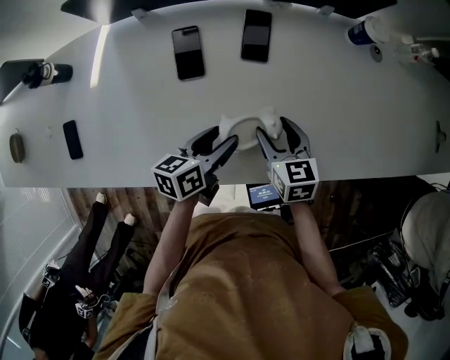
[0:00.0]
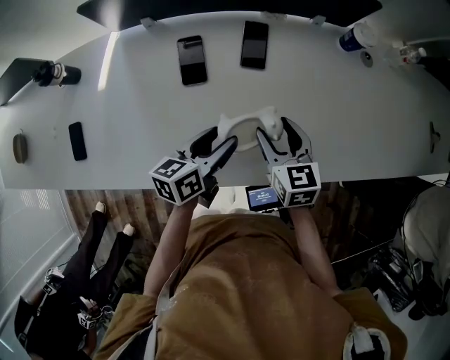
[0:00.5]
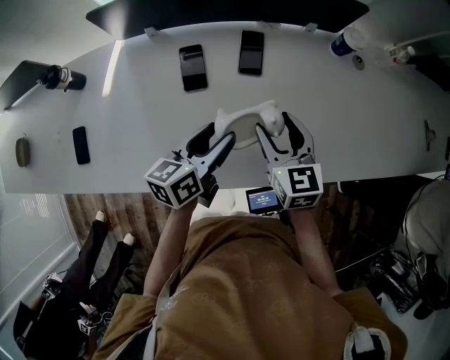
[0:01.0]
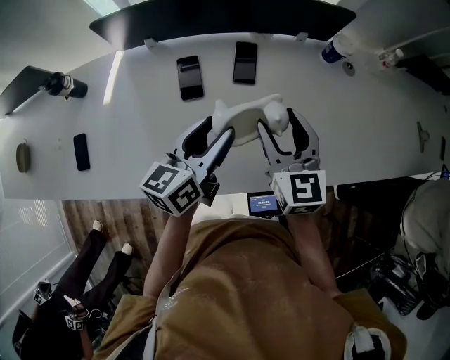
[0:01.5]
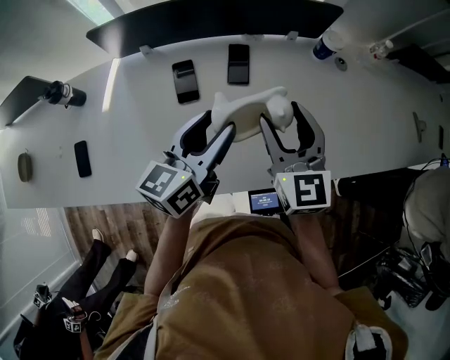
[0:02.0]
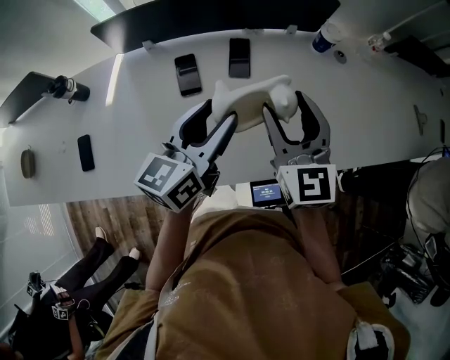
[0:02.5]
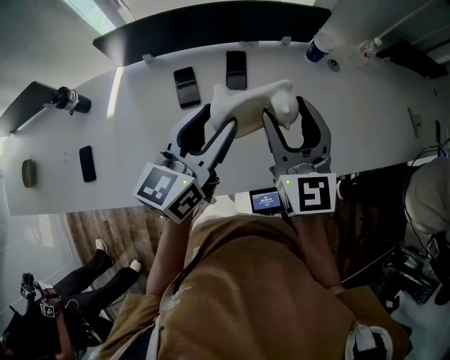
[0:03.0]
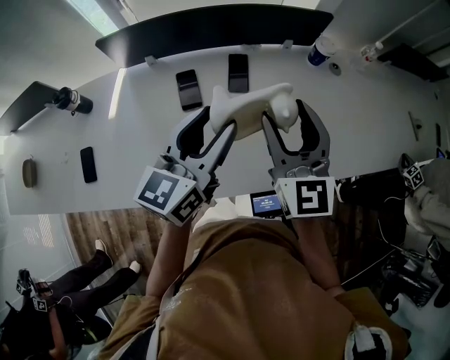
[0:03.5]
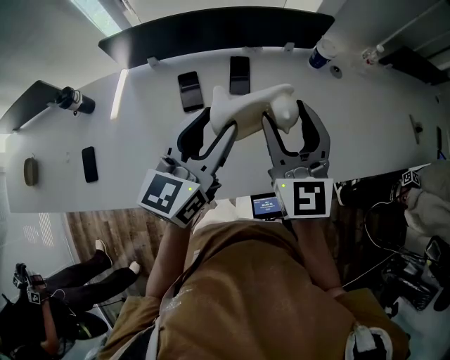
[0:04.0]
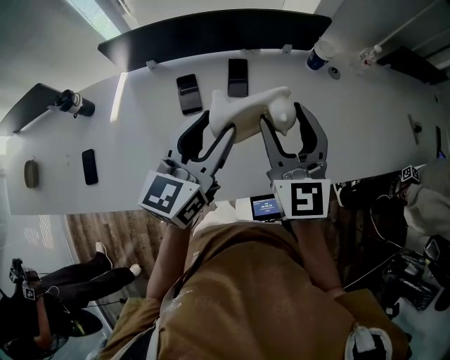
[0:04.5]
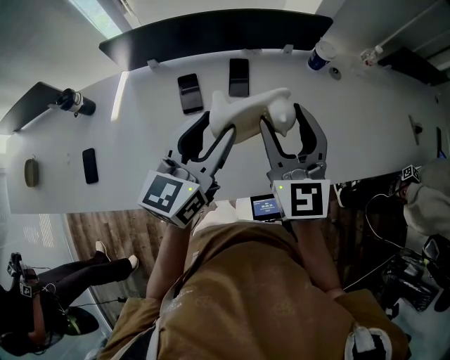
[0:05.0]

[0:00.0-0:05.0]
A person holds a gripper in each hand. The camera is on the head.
0:00.0 to 0:02.5: Both grippers move upward, approximately 25 cm. The left gripper turns by about 40 degrees. The right gripper tips its fingers upward by about 30 degrees.
0:02.5 to 0:05.0: The grippers make only small movements.

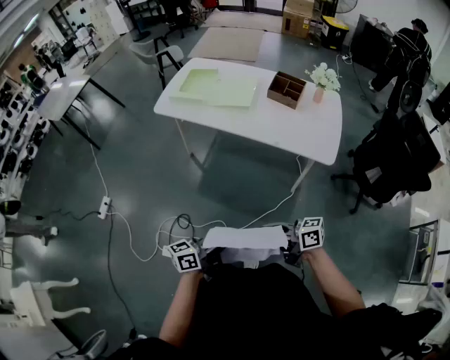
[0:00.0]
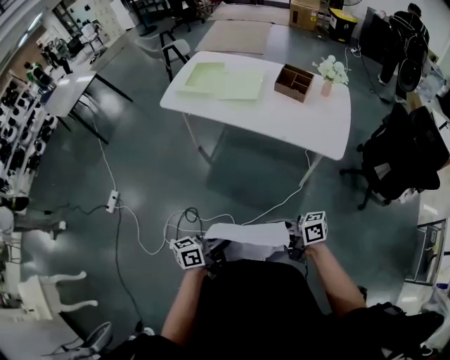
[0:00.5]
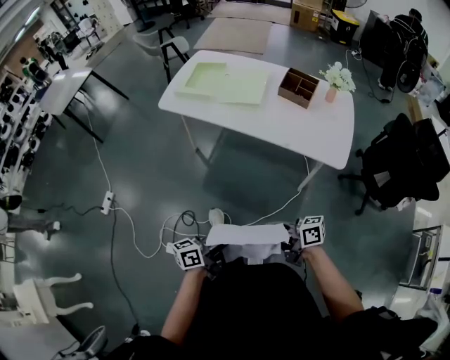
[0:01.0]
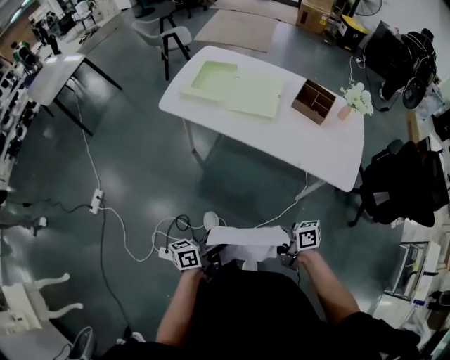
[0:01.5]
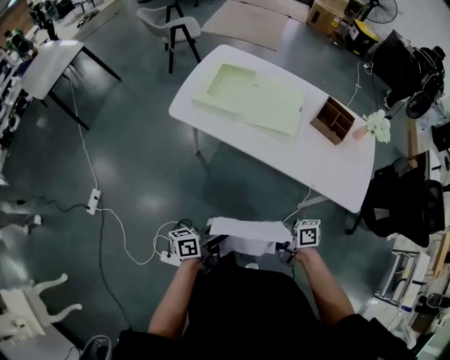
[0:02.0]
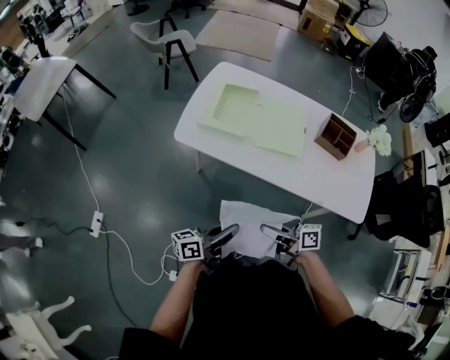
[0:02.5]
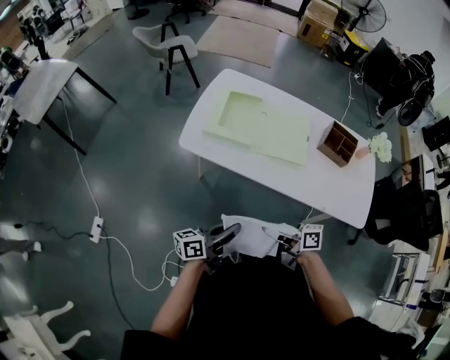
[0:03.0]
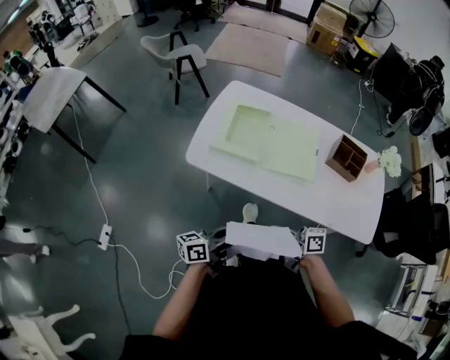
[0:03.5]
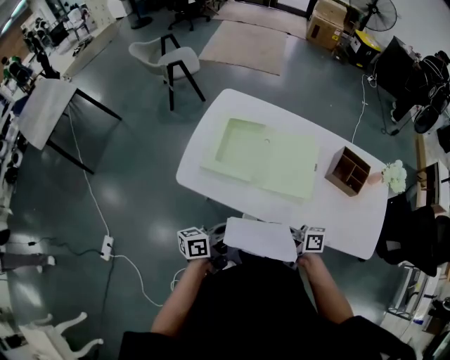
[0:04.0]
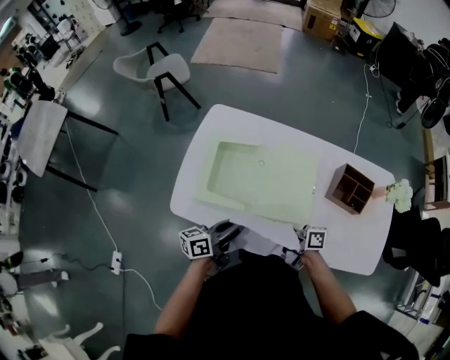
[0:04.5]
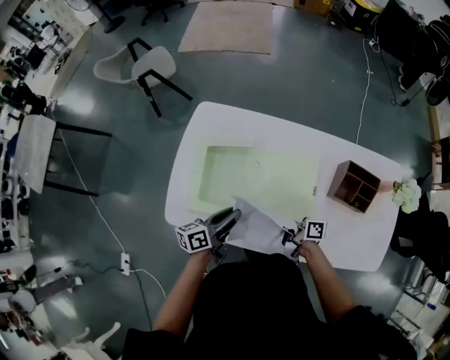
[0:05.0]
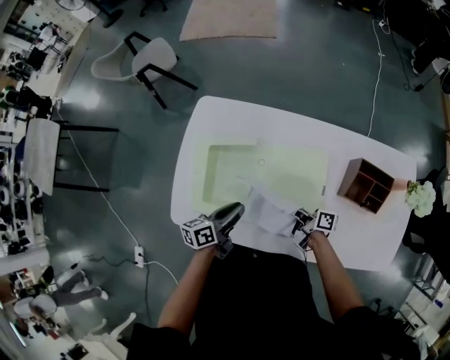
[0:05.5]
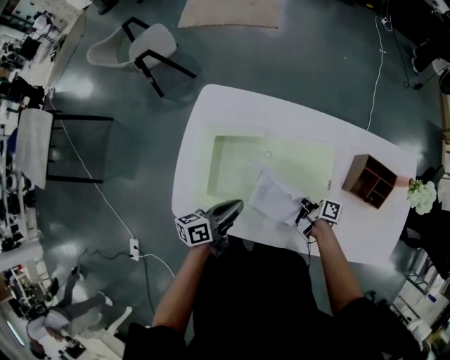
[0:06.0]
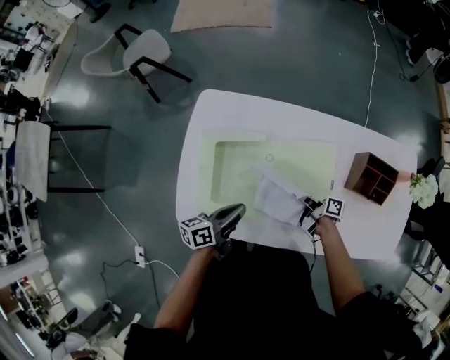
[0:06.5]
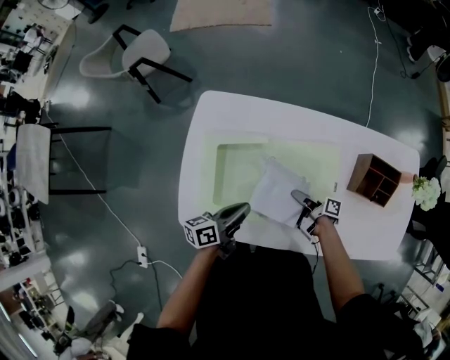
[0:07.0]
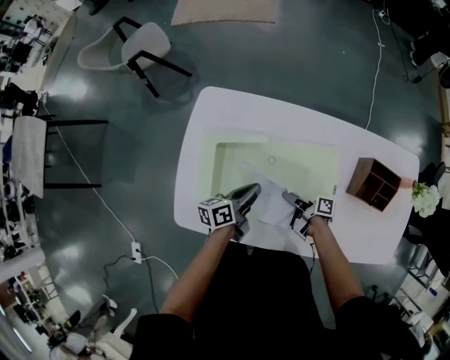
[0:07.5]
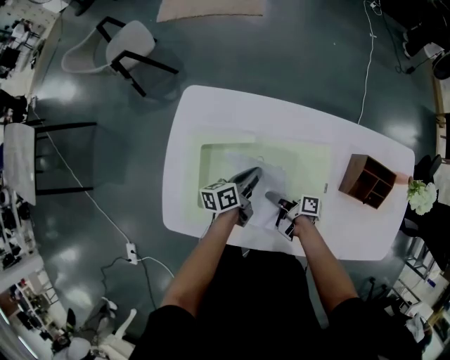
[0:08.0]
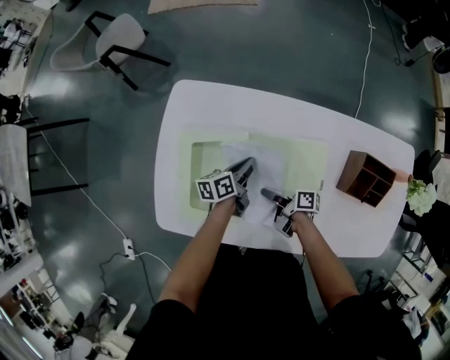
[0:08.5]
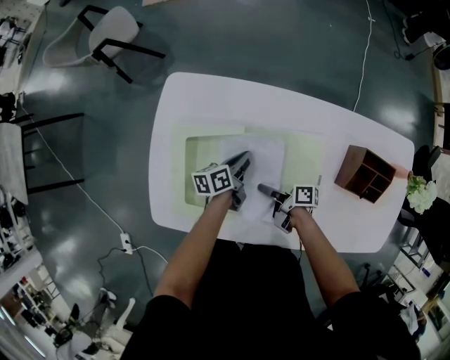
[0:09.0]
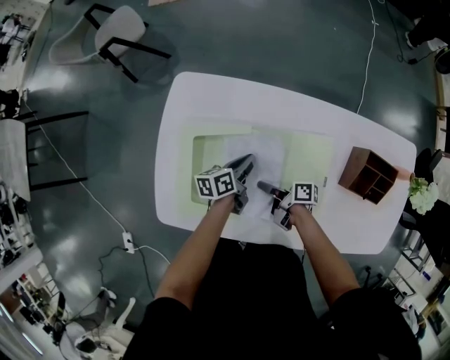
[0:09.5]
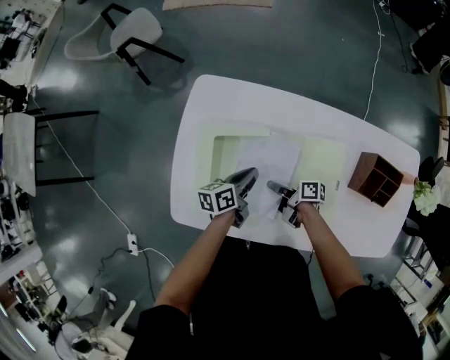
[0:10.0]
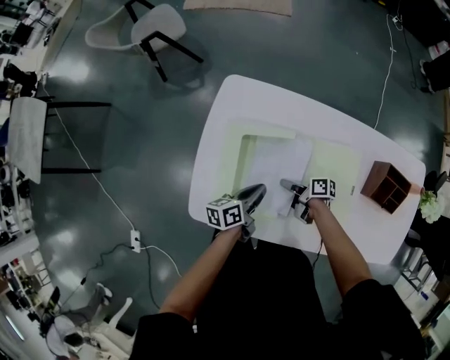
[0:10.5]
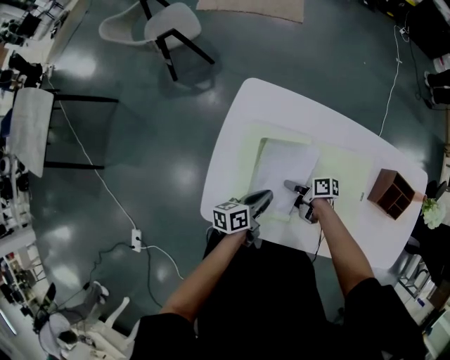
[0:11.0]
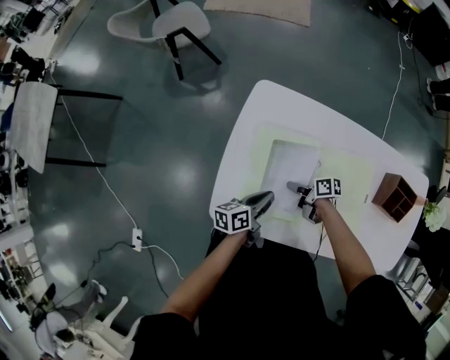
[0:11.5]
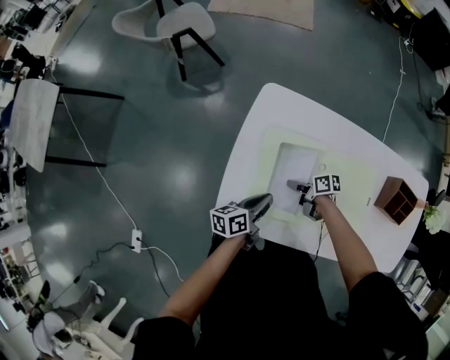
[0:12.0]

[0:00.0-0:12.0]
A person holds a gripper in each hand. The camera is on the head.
0:00.0 to 0:02.0: The left gripper moves approximately 30 cm.
0:02.0 to 0:04.0: The left gripper shifts by approximately 30 cm.
0:04.0 to 0:06.0: The left gripper shifts by approximately 25 cm.
0:06.0 to 0:08.0: The left gripper shifts by some 20 cm.
0:08.0 to 0:10.0: The left gripper shifts by some 5 cm.
0:10.0 to 0:12.0: The left gripper shifts by some 15 cm.

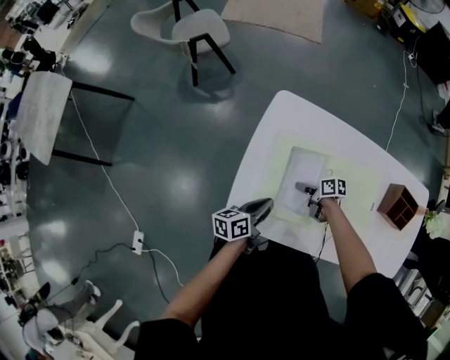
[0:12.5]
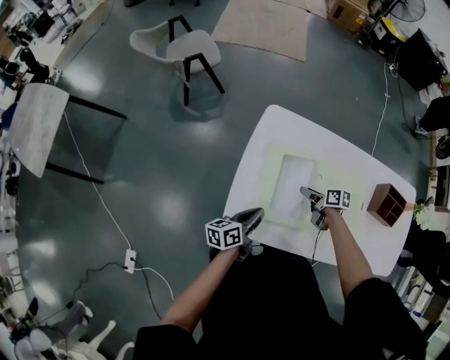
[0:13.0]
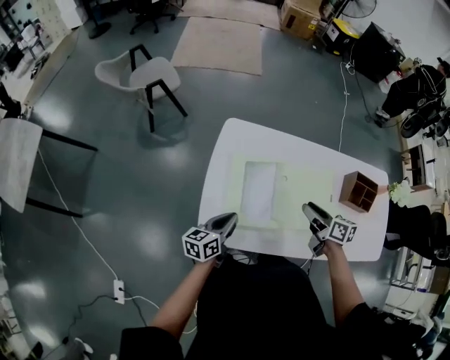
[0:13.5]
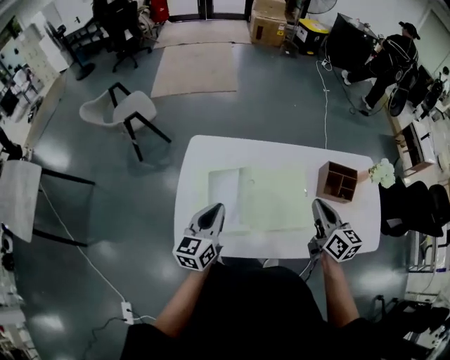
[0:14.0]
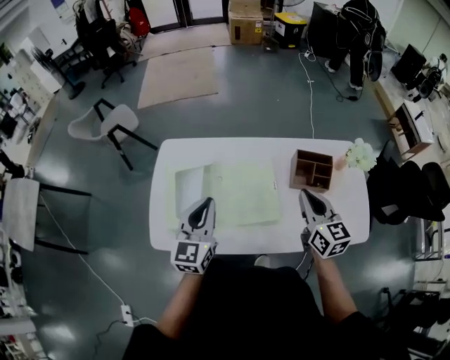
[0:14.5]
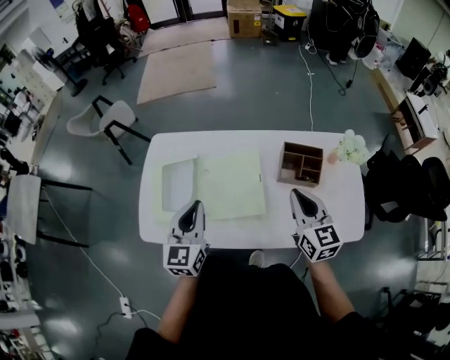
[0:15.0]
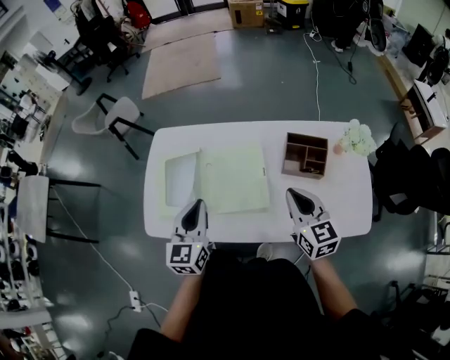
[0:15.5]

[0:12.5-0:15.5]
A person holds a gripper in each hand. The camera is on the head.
0:12.5 to 0:14.0: The left gripper goes approximately 20 cm upward, and rolls clockwise, seen from behind, by roughly 40 degrees.
0:14.0 to 0:15.5: The left gripper moves about 20 cm.

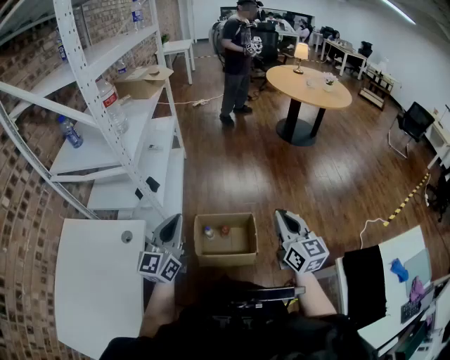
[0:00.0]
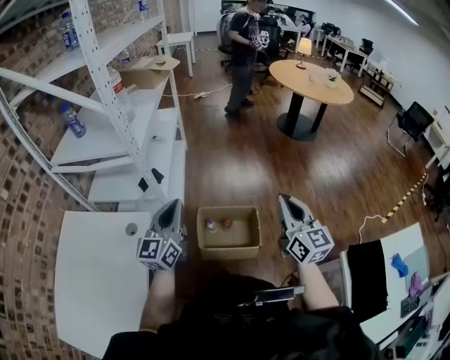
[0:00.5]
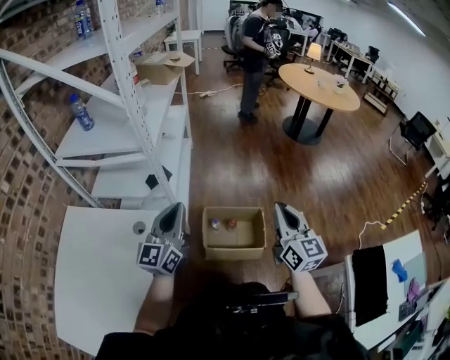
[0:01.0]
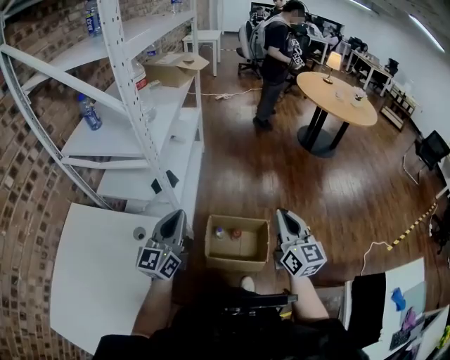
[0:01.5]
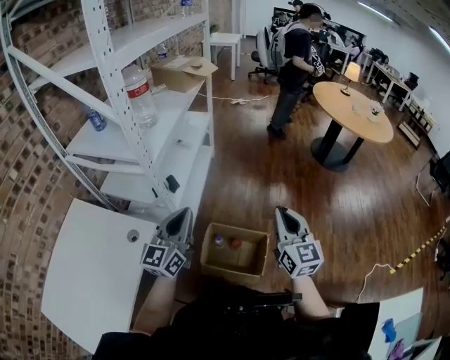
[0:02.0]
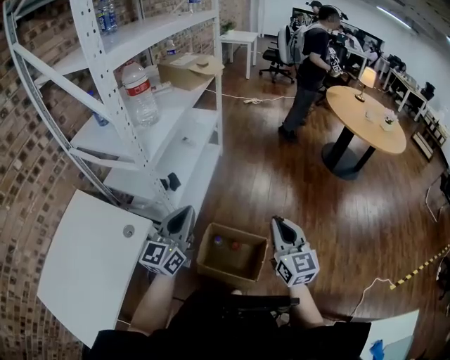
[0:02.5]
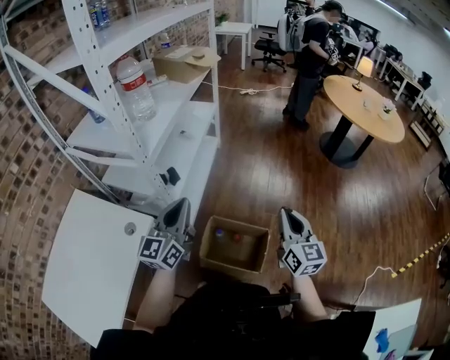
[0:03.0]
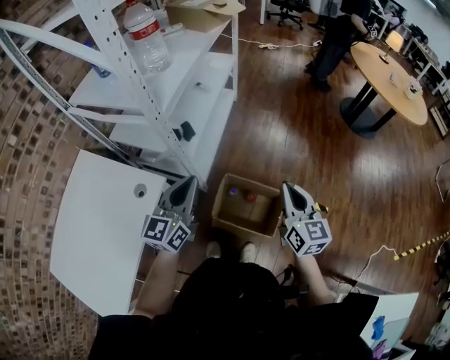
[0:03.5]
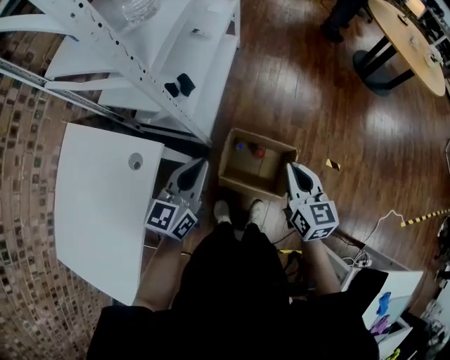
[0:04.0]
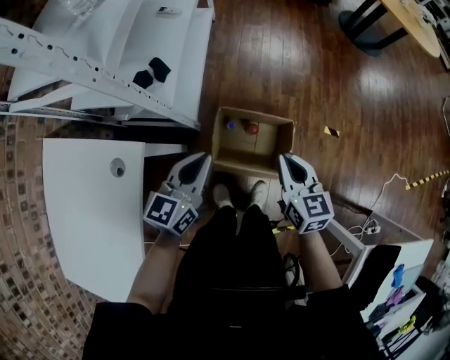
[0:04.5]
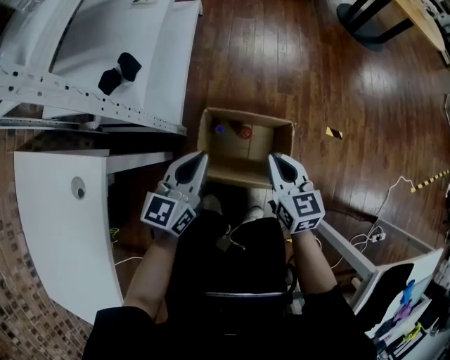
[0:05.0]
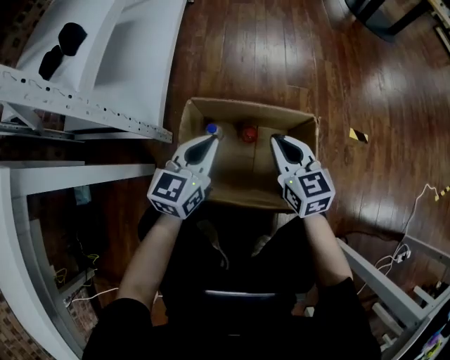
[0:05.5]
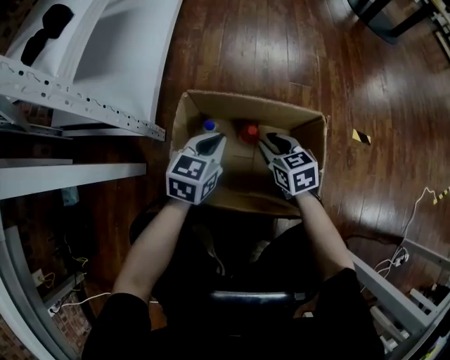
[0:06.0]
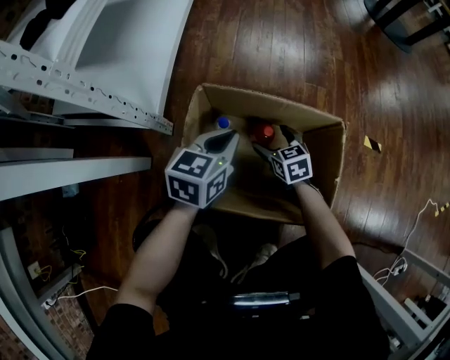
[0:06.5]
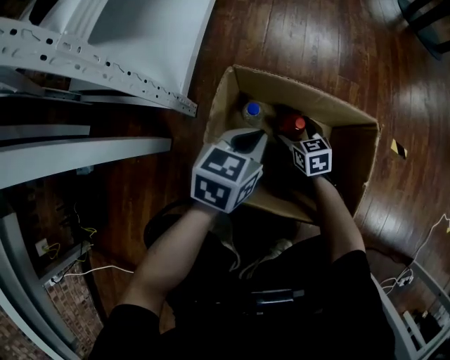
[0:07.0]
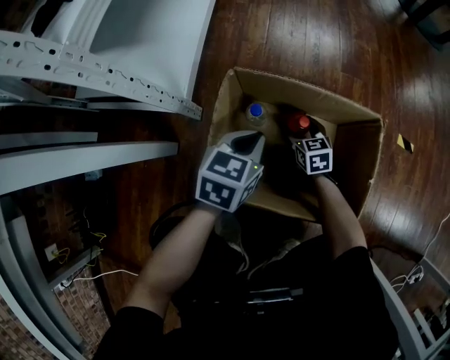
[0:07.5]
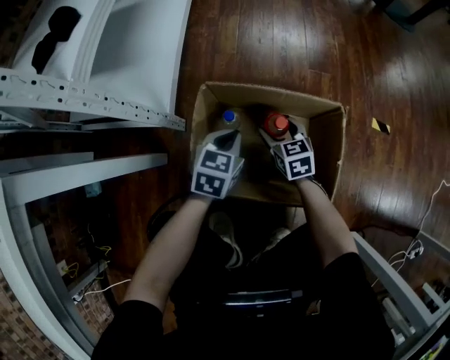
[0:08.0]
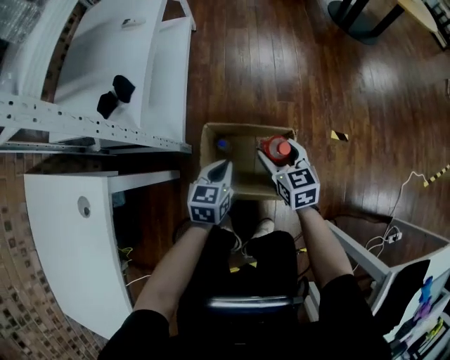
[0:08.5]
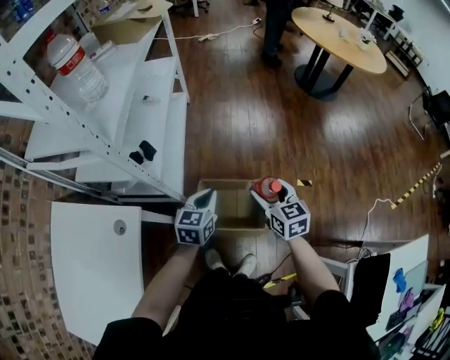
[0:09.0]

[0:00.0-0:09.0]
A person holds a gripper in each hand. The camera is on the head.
0:00.0 to 0:02.0: The right gripper shifts approximately 15 cm forward, while the left gripper is displaced forward by roughly 10 cm.
0:02.0 to 0:04.5: The two grippers go approximately 25 cm downward. The left gripper swivels approximately 30 degrees. The right gripper changes its angle by approximately 30 degrees.
0:04.5 to 0:07.0: The grippers both shift downward by approximately 60 cm. The left gripper swivels some 20 degrees, while the right gripper rotates roughly 20 degrees, and opens up.
0:07.0 to 0:09.0: The grippers both shift upward by about 70 cm. The right gripper rotates about 20 degrees.
